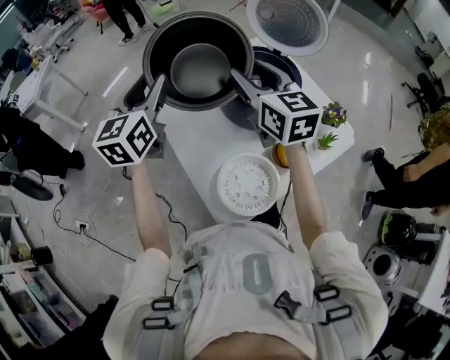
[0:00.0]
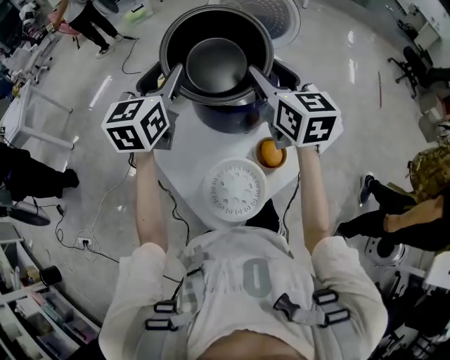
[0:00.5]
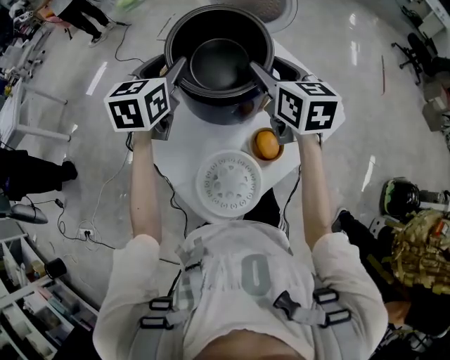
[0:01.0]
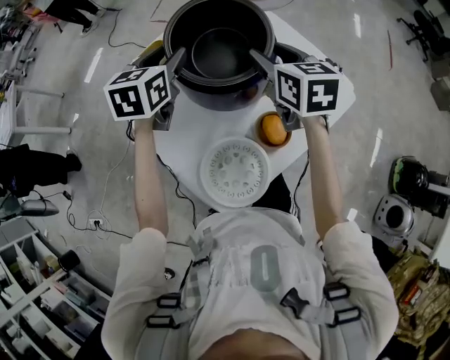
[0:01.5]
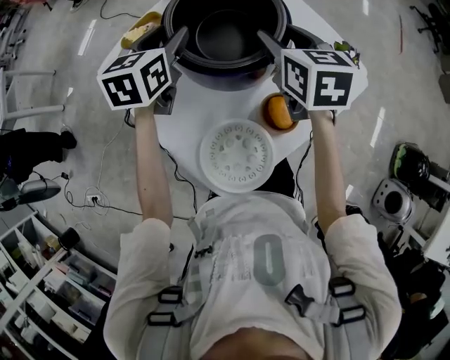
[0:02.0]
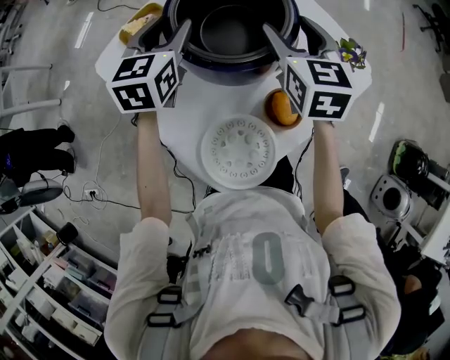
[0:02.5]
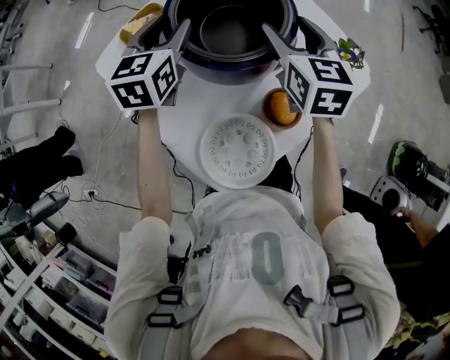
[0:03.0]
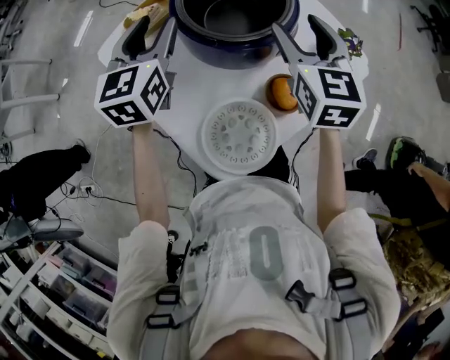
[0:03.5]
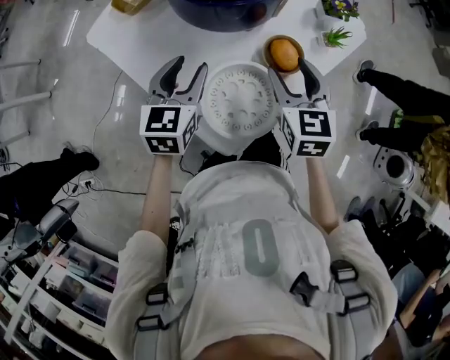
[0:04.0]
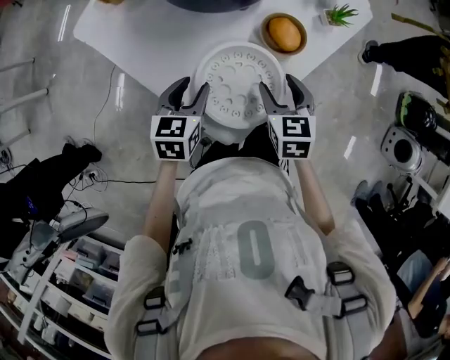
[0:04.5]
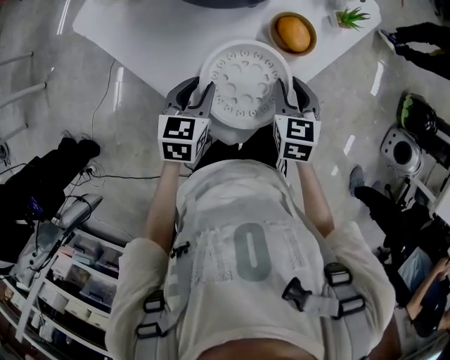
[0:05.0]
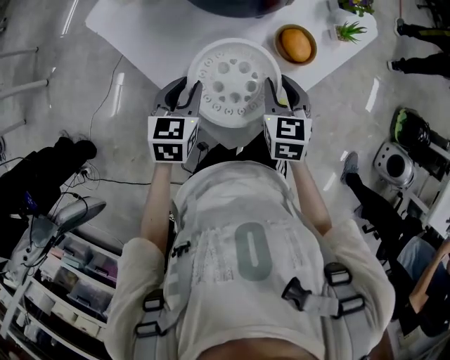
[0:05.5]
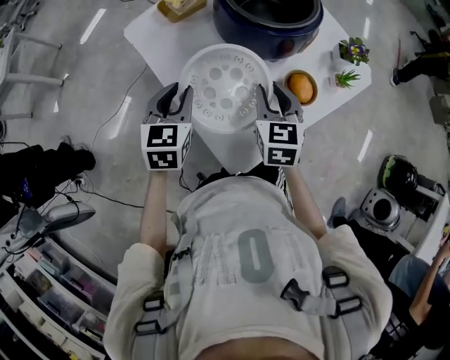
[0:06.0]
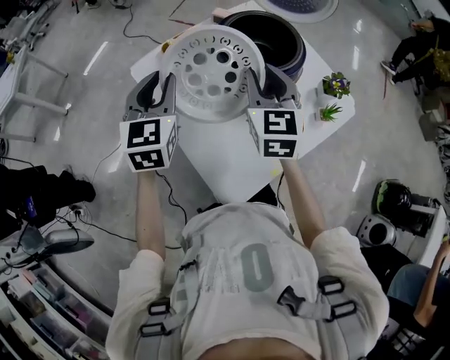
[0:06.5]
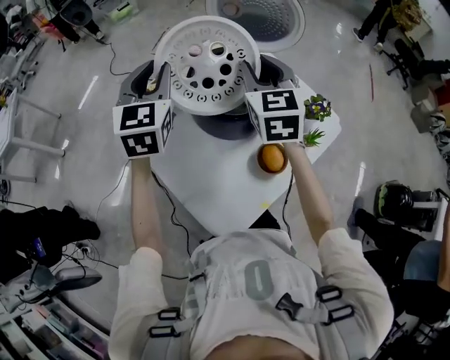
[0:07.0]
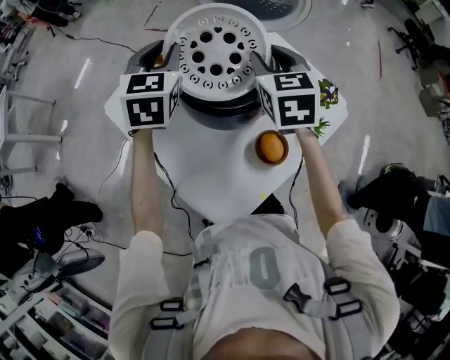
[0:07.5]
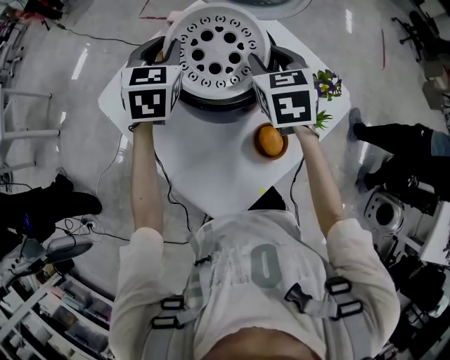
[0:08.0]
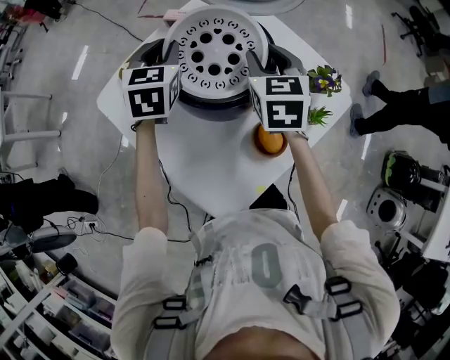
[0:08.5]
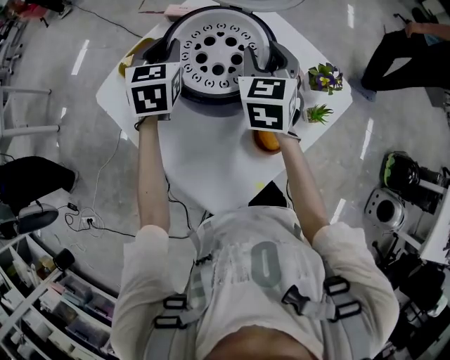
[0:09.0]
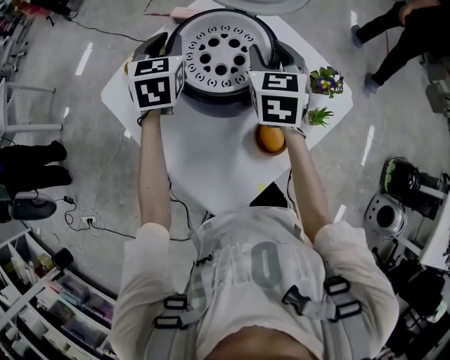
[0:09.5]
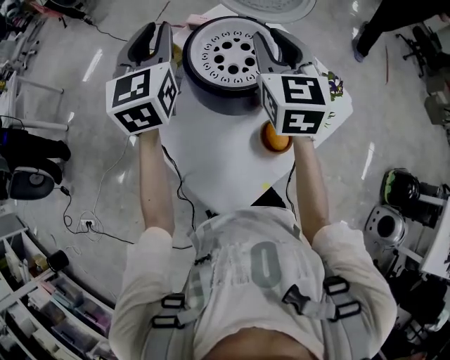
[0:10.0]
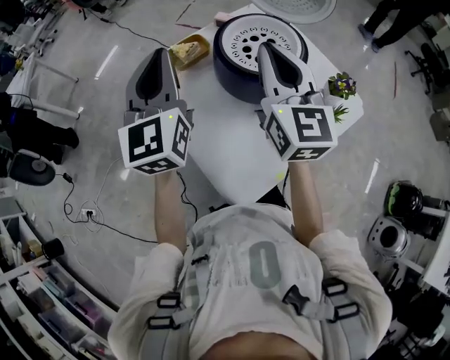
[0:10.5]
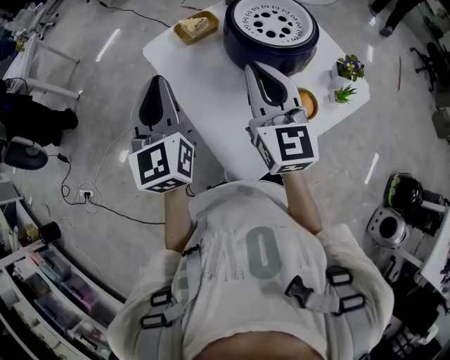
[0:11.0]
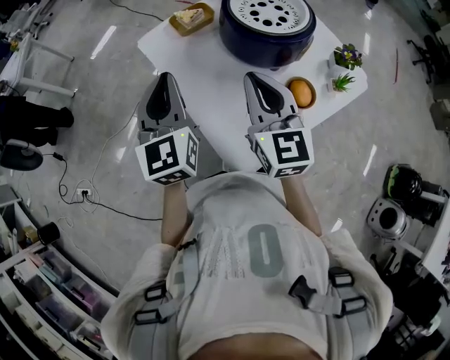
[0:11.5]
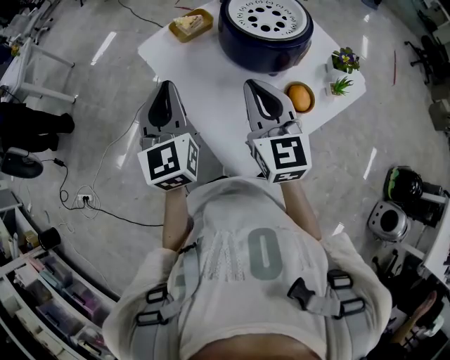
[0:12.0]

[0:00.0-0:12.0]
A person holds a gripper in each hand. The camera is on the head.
0:00.0 to 0:02.0: Both grippers travel together to the right, downward and forward, about 25 cm. The right gripper swivels some 30 degrees. The left gripper swivels roughly 30 degrees.
0:02.0 to 0:04.0: Both grippers travel together backward, about 20 cm.
0:04.0 to 0:06.0: Both grippers move to the left, approximately 10 cm. The right gripper reaches approximately 10 cm downward, then returns, and closes; the left gripper moves some 10 cm downward and comes back.
0:06.0 to 0:08.0: Both grippers travel together forward, upward and to the right, roughly 30 cm.
0:08.0 to 0:10.0: The right gripper travels upward by approximately 10 cm, and swivels some 30 degrees. Meanwhile the left gripper heads upward and backward, covering about 15 cm, and turns by some 30 degrees.
0:10.0 to 0:12.0: The two grippers go roughly 25 cm backward, to the left and downward.

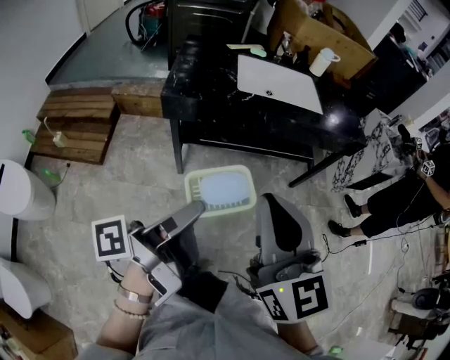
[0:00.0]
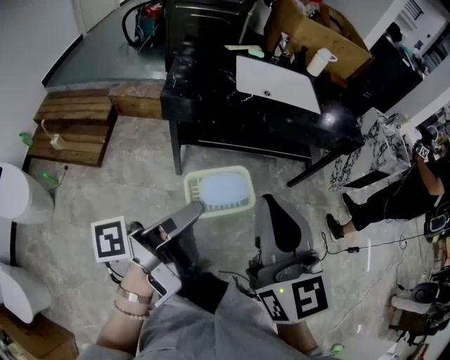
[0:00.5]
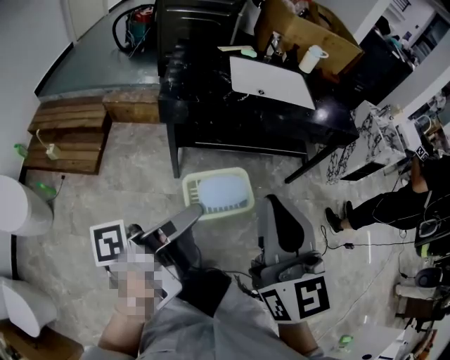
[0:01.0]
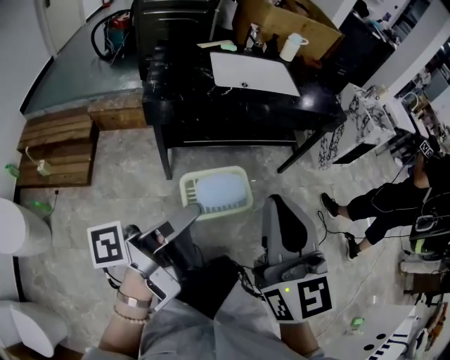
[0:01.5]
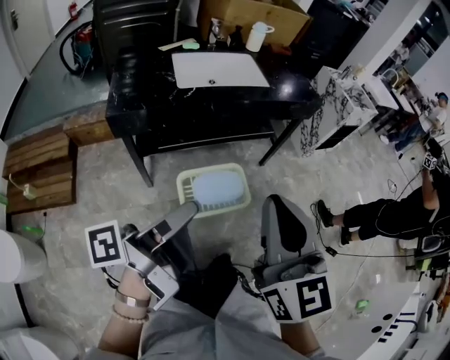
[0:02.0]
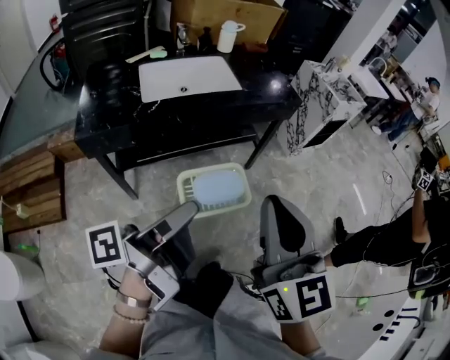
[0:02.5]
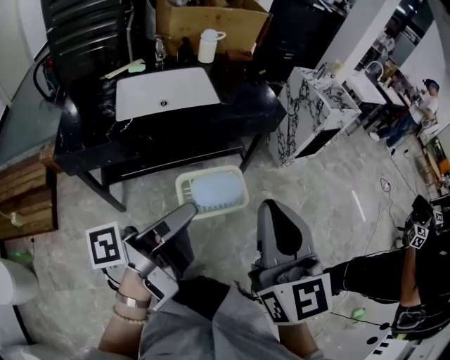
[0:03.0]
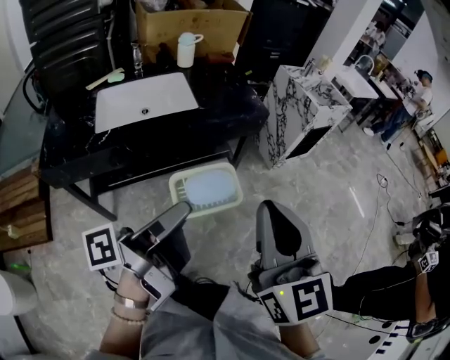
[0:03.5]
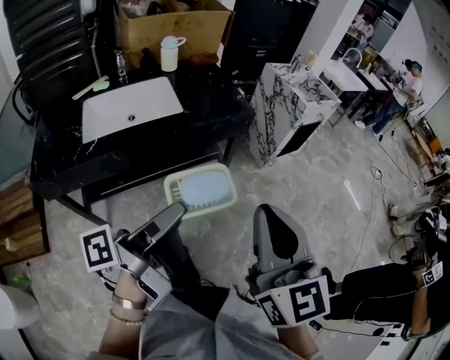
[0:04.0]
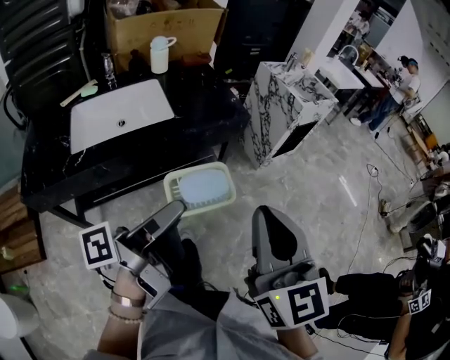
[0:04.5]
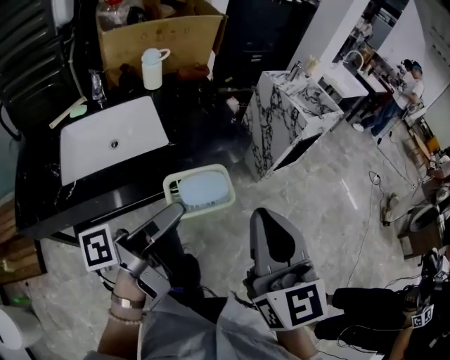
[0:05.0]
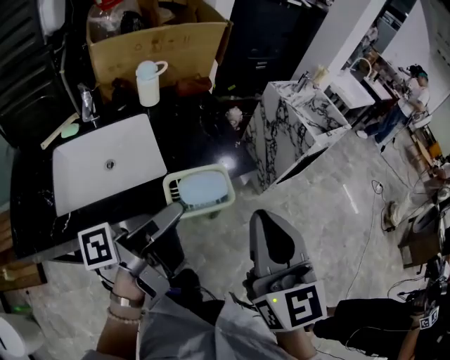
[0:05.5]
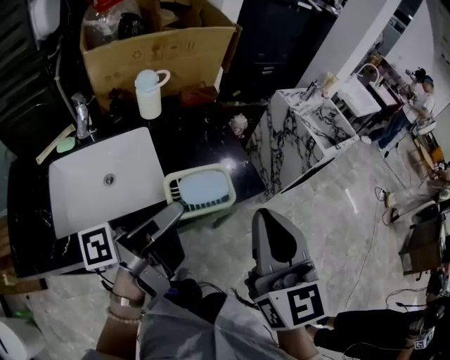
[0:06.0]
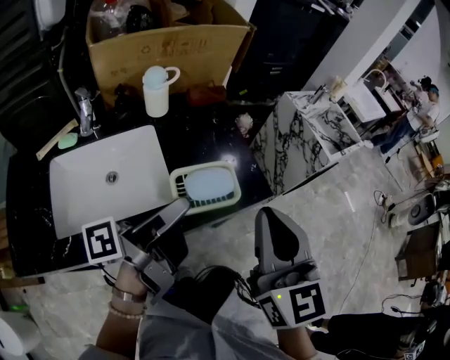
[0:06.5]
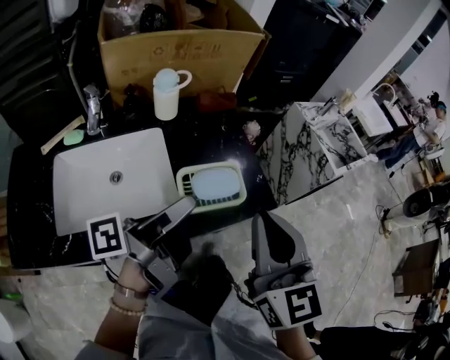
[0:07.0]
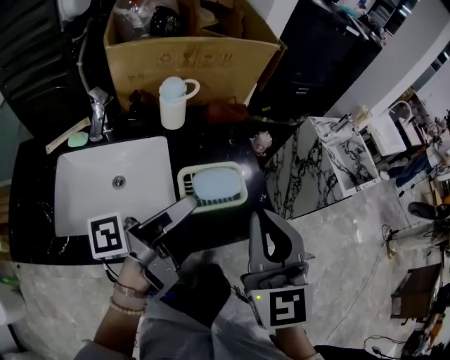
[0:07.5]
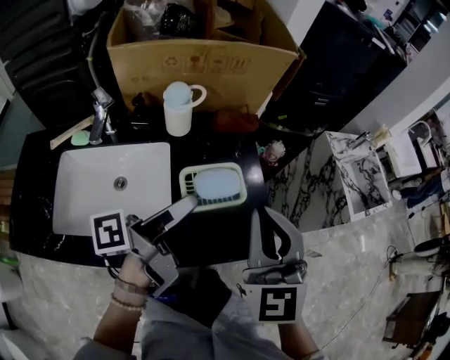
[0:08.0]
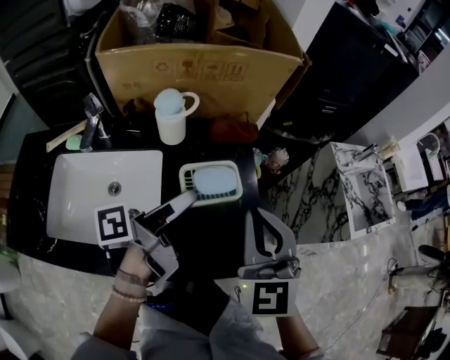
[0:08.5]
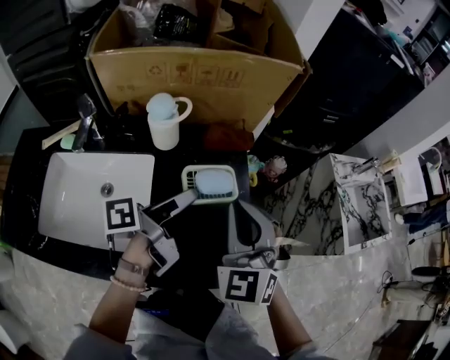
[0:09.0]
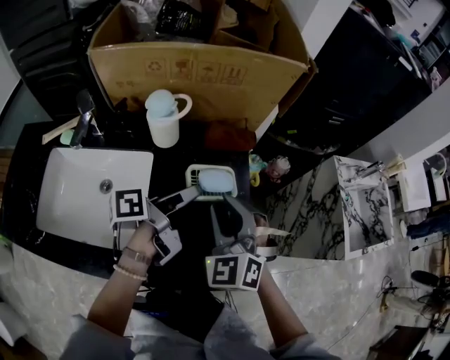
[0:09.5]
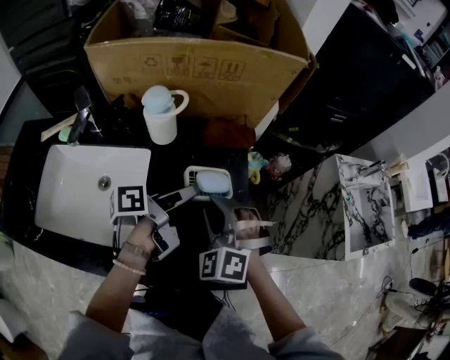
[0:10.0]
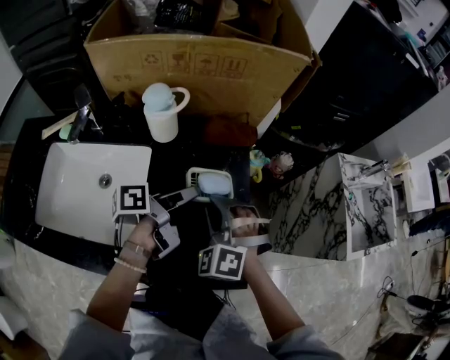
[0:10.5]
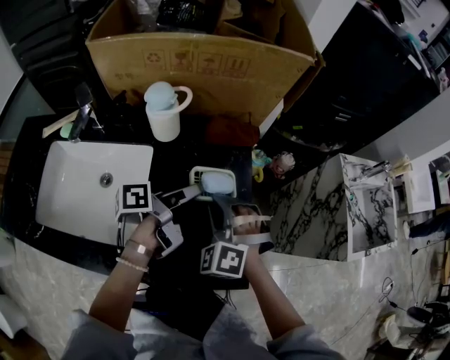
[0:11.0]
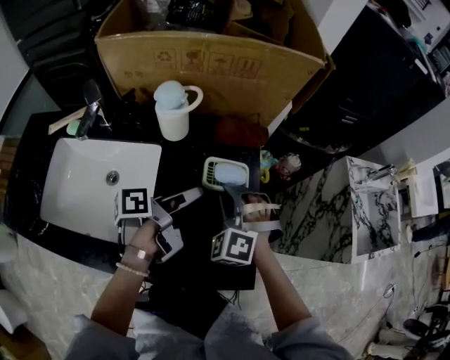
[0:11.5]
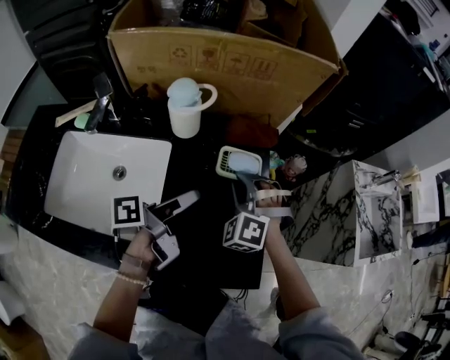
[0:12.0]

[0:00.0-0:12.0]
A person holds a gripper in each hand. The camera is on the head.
0:00.0 to 0:02.0: The right gripper moves roughly 10 cm, and turns by roughly 20 degrees.
0:02.0 to 0:04.0: The right gripper shifts by about 35 cm.
0:04.0 to 0:06.0: The right gripper changes place by about 40 cm.
0:06.0 to 0:08.0: The right gripper changes place by roughly 20 cm, and turns by some 30 degrees.
0:08.0 to 0:10.0: The right gripper travels downward by about 20 cm, turns by approximately 50 degrees, and opens up.
0:10.0 to 0:12.0: The right gripper moves approximately 10 cm.

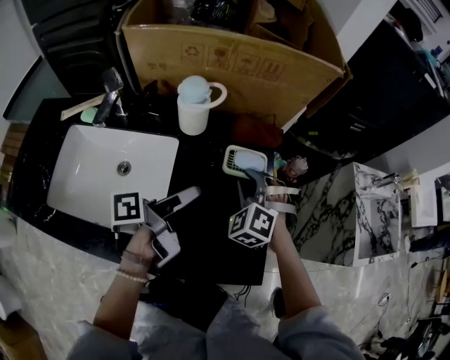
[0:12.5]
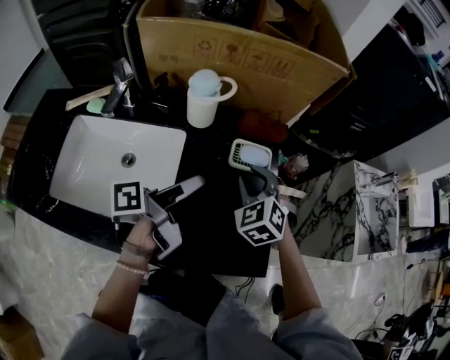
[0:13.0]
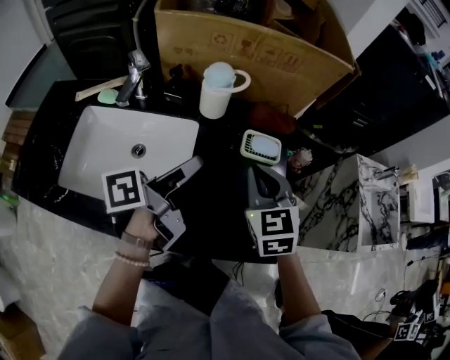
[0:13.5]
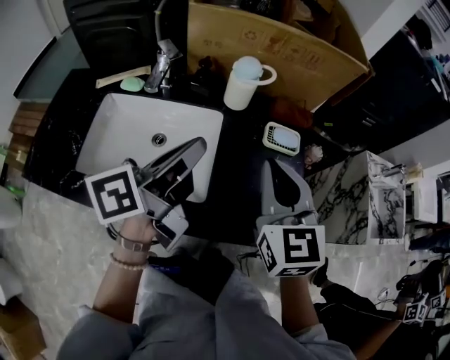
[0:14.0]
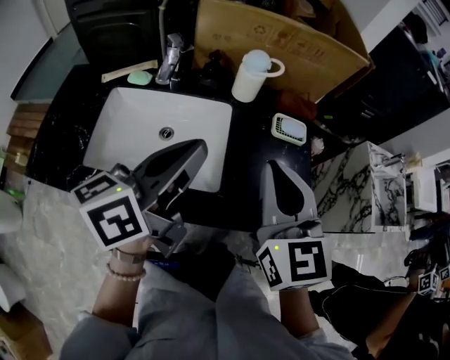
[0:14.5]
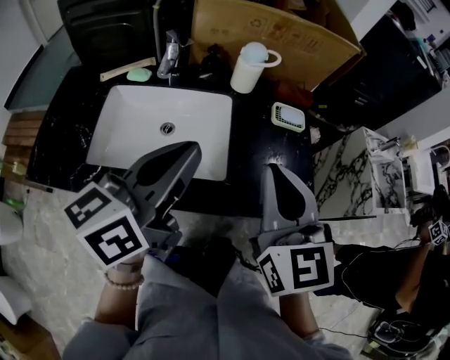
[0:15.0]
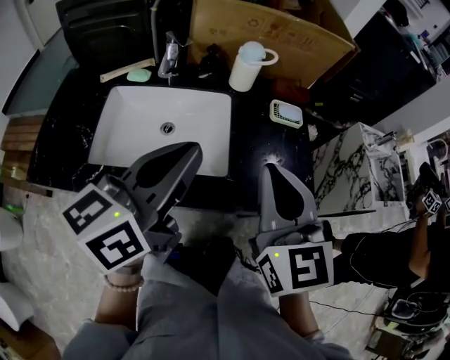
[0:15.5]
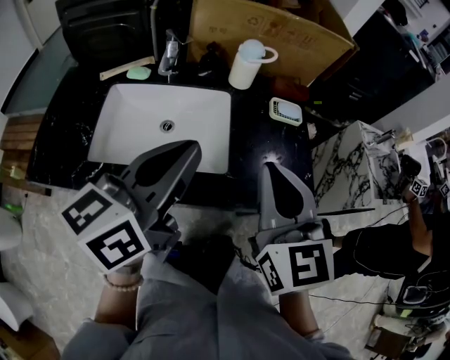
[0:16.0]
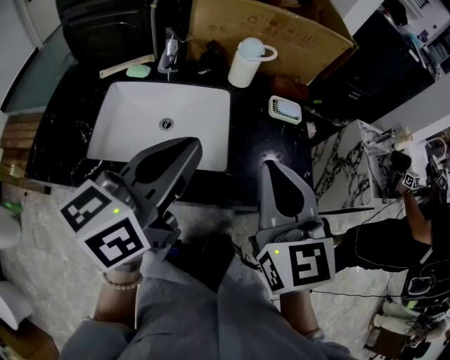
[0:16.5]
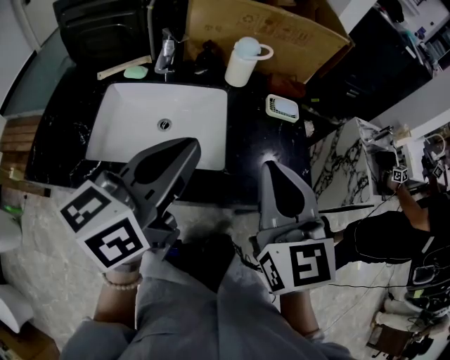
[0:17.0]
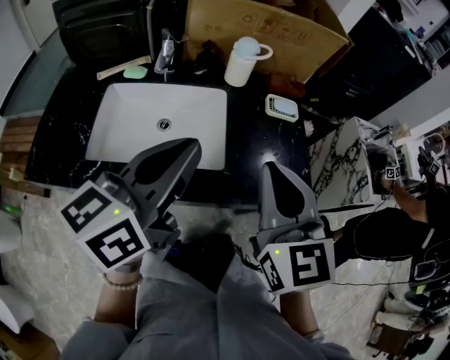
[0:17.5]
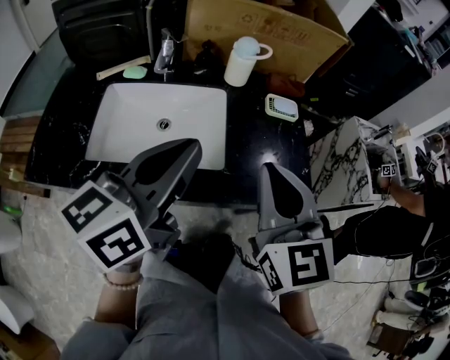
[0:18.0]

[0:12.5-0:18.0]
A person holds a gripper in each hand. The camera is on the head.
0:12.5 to 0:14.5: The right gripper ends up some 35 cm from where it was, rolls clockwise, seen from behind, by roughly 60 degrees, and closes.
0:14.5 to 0:16.0: The right gripper moves about 10 cm.
